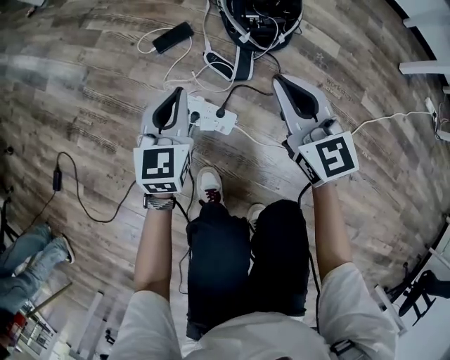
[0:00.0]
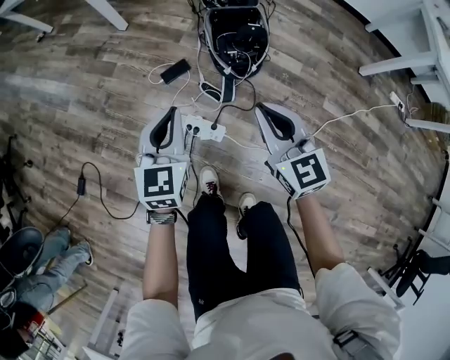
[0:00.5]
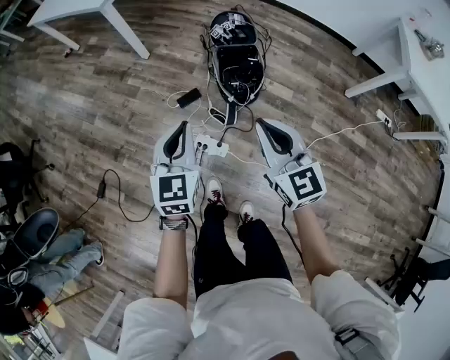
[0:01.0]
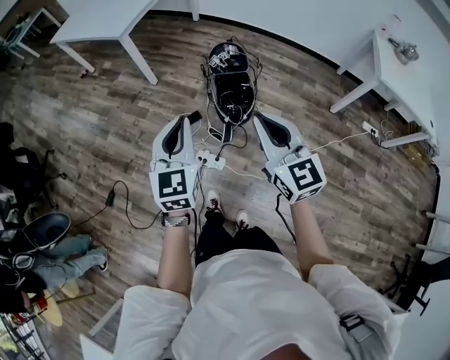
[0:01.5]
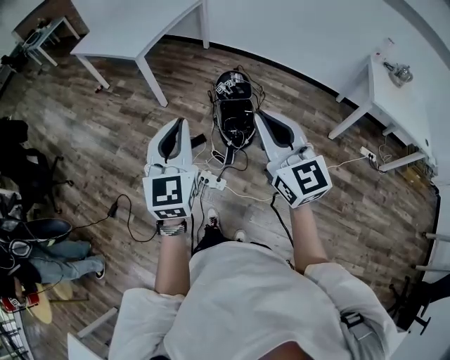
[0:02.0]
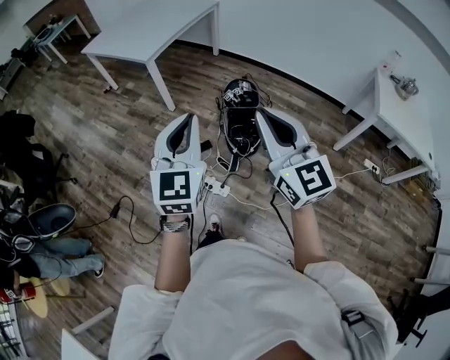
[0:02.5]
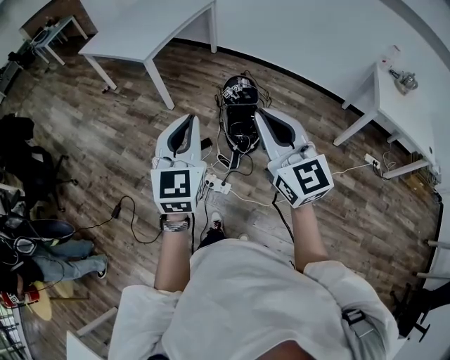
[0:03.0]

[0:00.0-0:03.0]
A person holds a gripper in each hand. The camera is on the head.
0:00.0 to 0:01.5: The two grippers go about 70 cm upward.
0:01.5 to 0:03.0: The two grippers go some 15 cm upward.

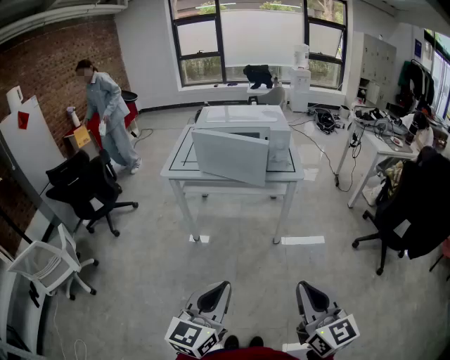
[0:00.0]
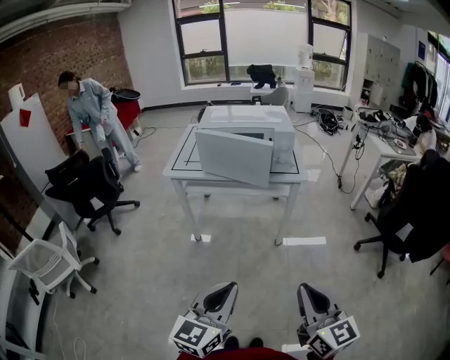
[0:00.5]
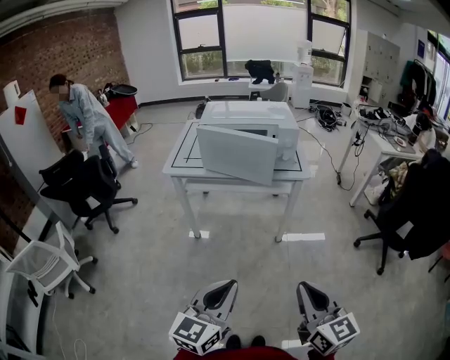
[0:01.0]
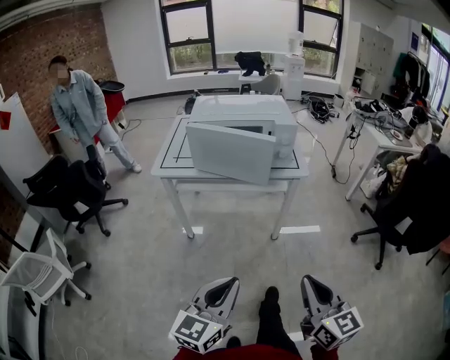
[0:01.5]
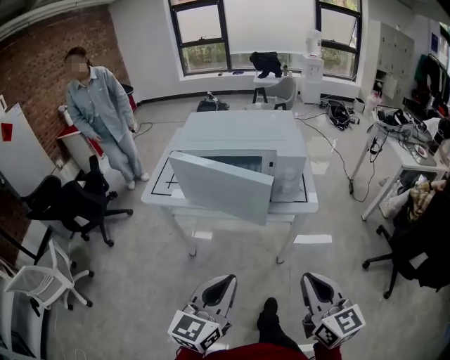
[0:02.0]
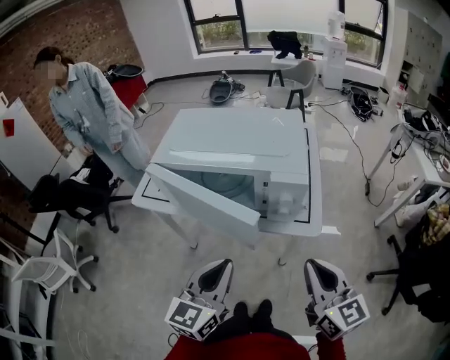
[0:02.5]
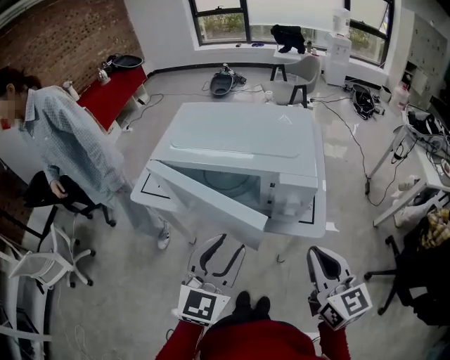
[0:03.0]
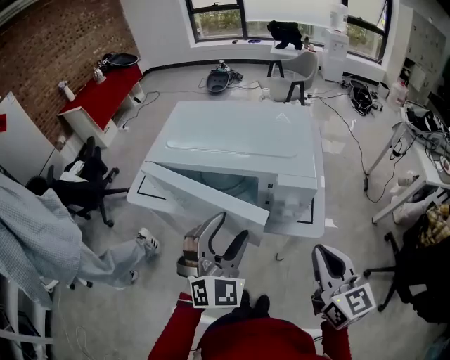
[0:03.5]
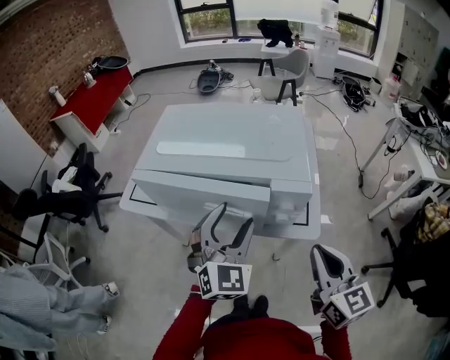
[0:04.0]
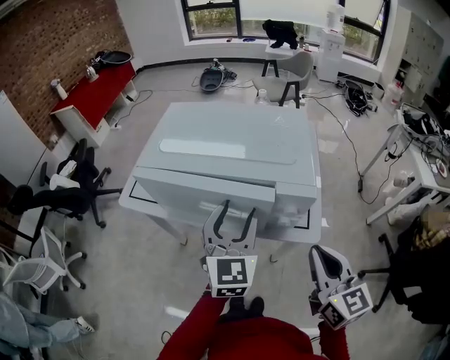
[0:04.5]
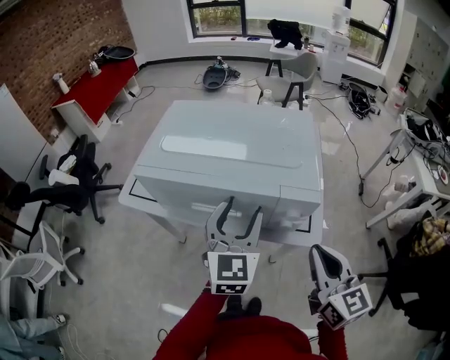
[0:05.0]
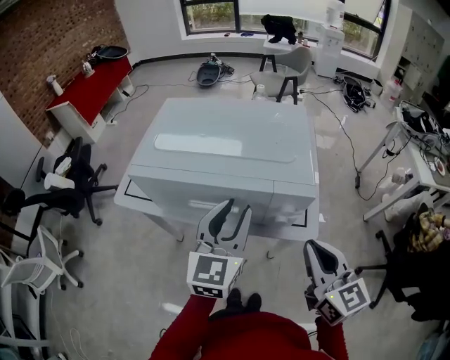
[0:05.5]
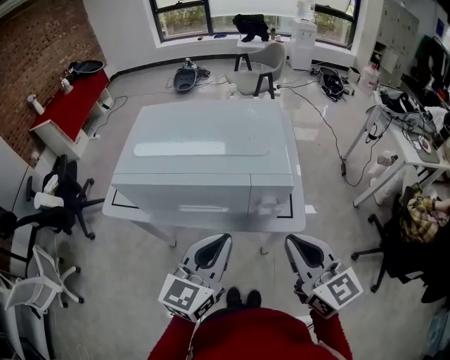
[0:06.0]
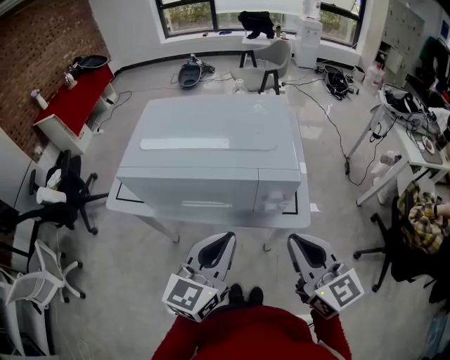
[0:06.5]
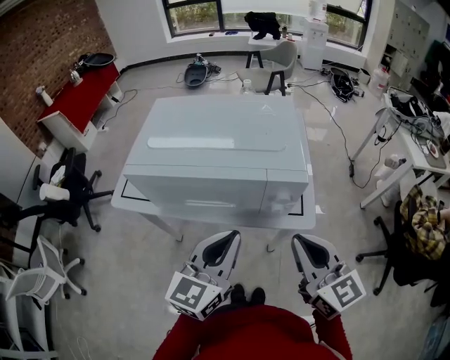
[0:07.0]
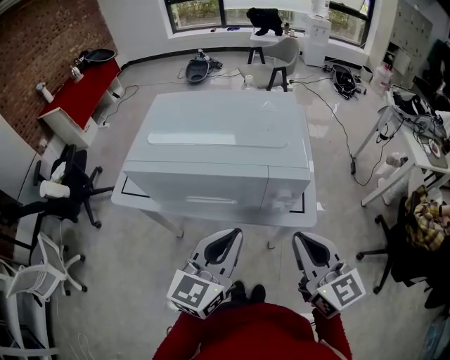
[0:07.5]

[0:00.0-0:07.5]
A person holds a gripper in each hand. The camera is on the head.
0:00.0 to 0:02.0: Both grippers travel together forward, about 25 cm.
0:02.0 to 0:04.0: Both grippers travel together forward, about 25 cm. The left gripper swivels some 40 degrees, and opens.
0:04.0 to 0:05.5: The left gripper swivels about 30 degrees, and closes.
0:05.5 to 0:07.5: The left gripper moves backward, roughly 10 cm, and closes its fingers.

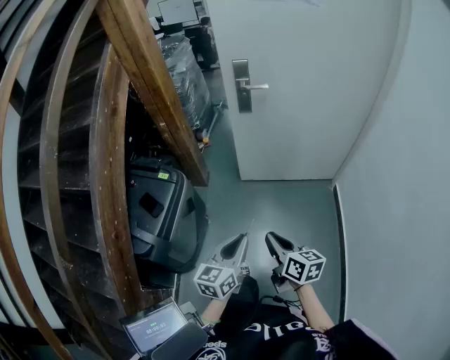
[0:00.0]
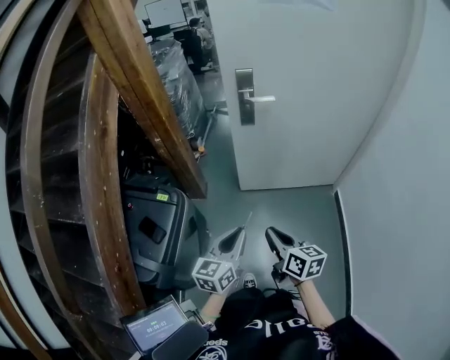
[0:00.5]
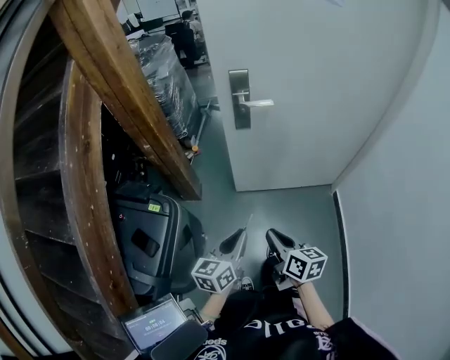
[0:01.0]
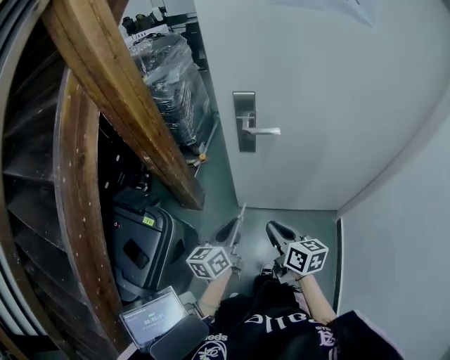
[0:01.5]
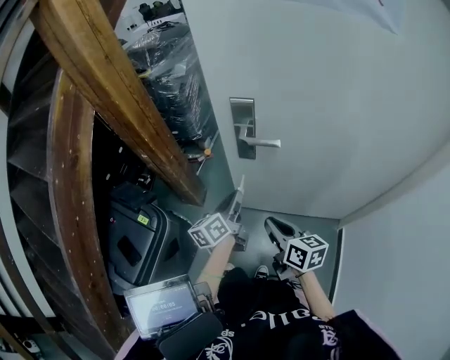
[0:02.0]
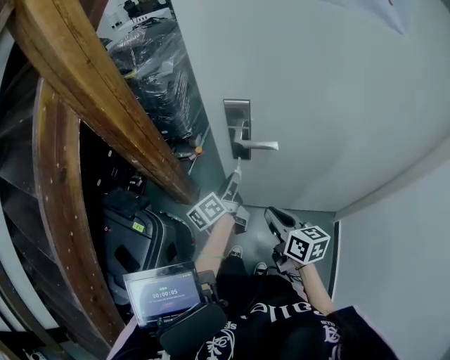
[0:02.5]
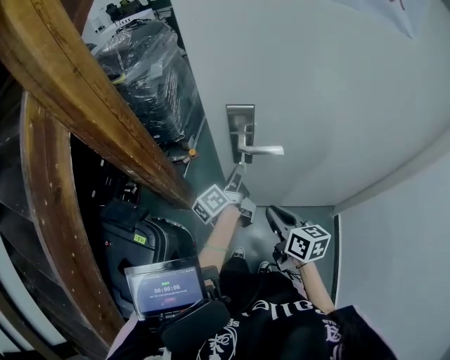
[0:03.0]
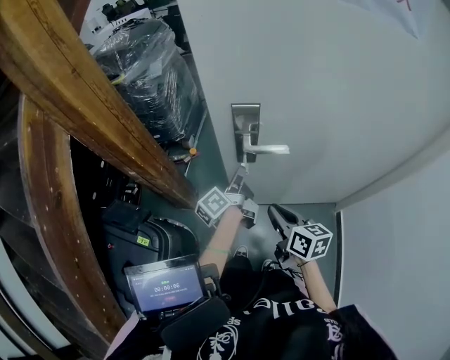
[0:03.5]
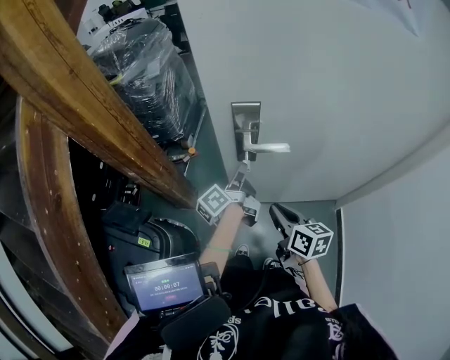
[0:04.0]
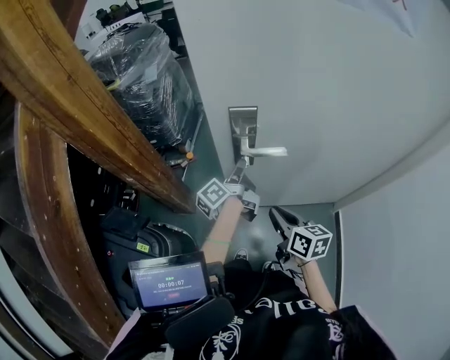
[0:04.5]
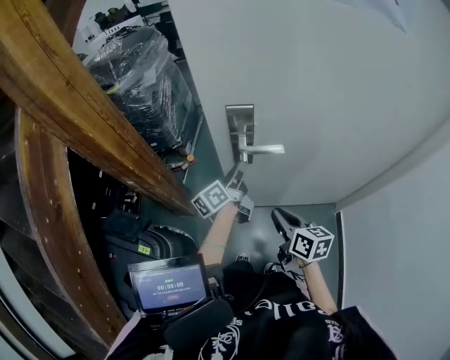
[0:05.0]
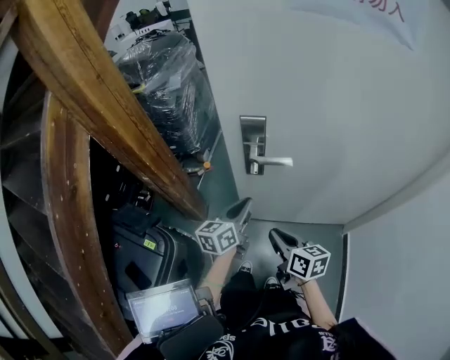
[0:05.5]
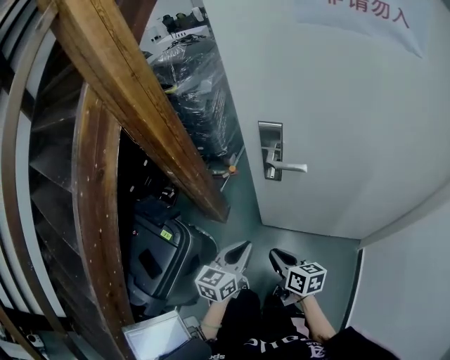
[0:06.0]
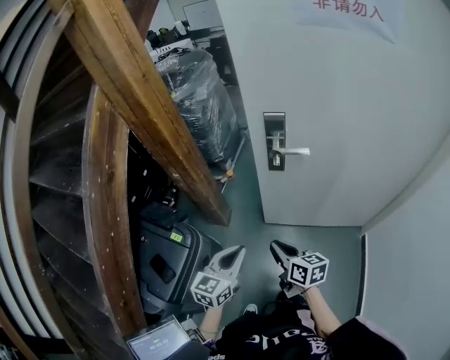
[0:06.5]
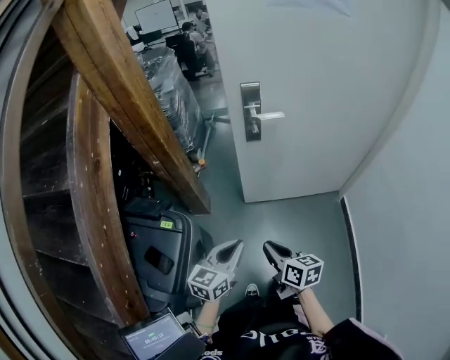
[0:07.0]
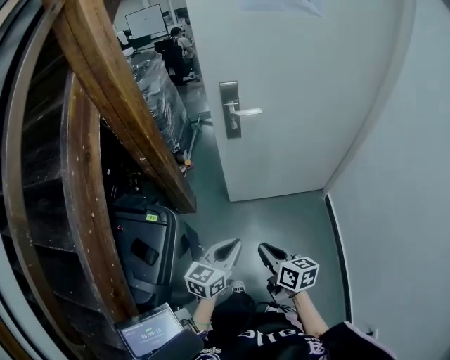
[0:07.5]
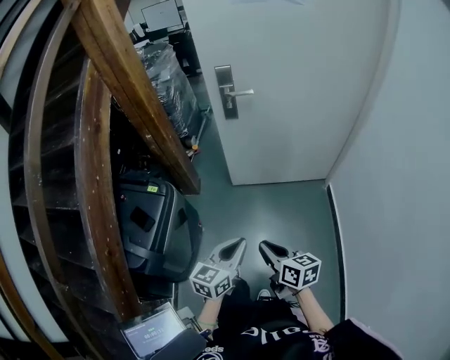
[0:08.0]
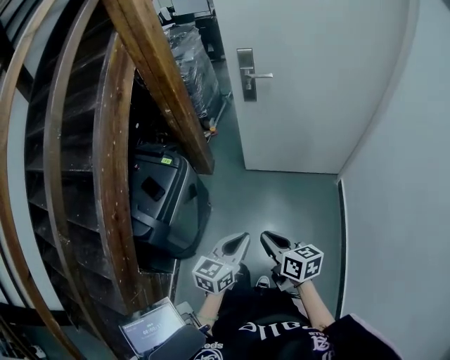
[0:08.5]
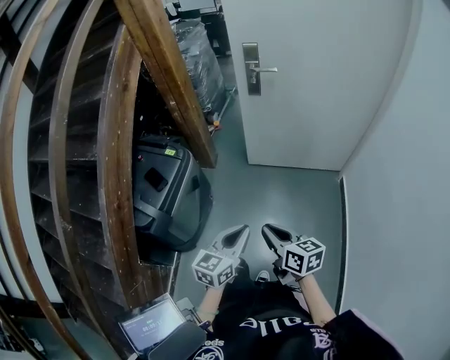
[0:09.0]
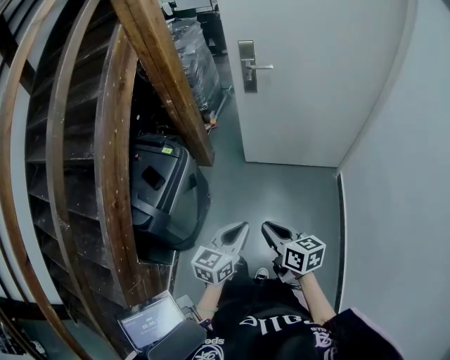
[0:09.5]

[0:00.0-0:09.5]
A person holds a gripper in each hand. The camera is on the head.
0:00.0 to 0:02.0: The two grippers travel together, forward, some 50 cm. The left gripper rotates about 30 degrees.
0:02.0 to 0:04.0: The left gripper moves forward, about 15 cm, and rotates approximately 30 degrees. Meanwhile the right gripper heads forward, covering about 10 cm.
0:04.0 to 0:05.5: The left gripper moves backward, about 10 cm, and twists about 50 degrees clockwise, seen from behind.
0:05.5 to 0:07.5: The two grippers go roughly 35 cm backward. The left gripper swivels approximately 20 degrees.
0:07.5 to 0:09.5: The two grippers go approximately 20 cm backward.

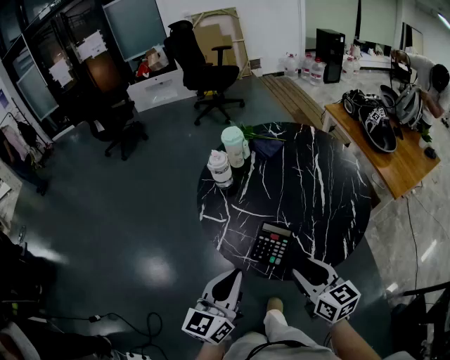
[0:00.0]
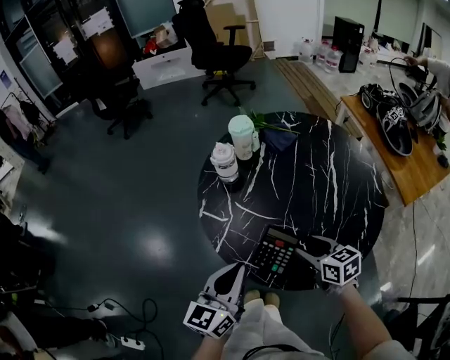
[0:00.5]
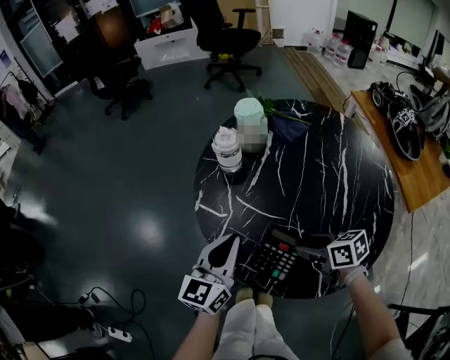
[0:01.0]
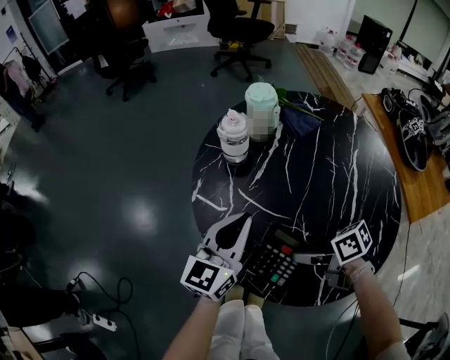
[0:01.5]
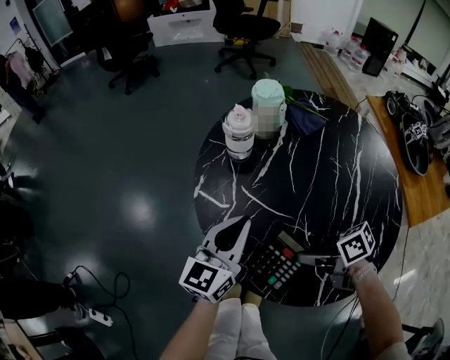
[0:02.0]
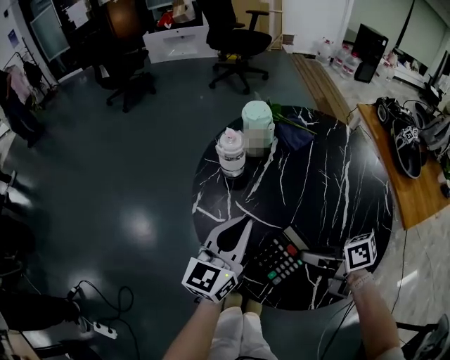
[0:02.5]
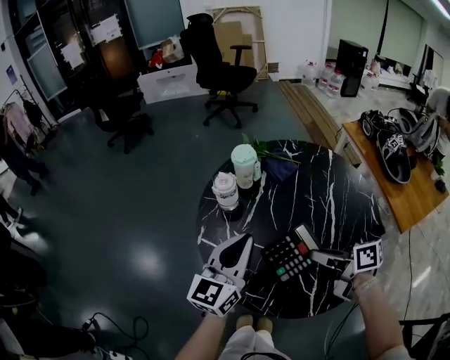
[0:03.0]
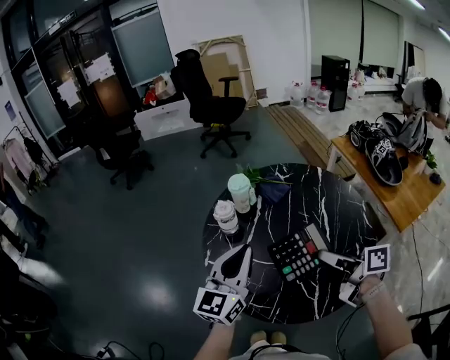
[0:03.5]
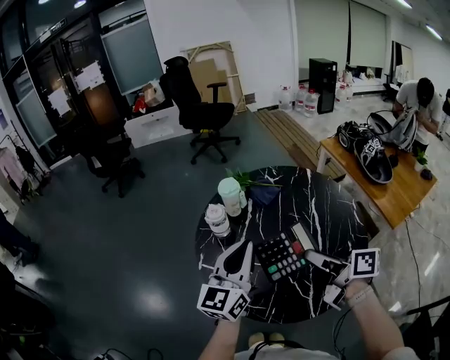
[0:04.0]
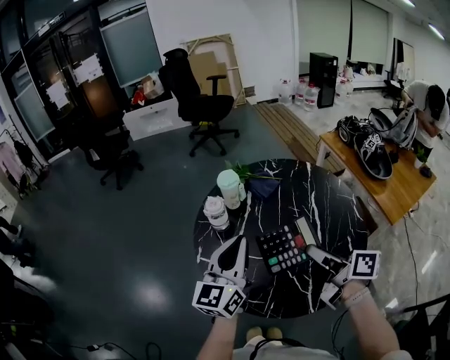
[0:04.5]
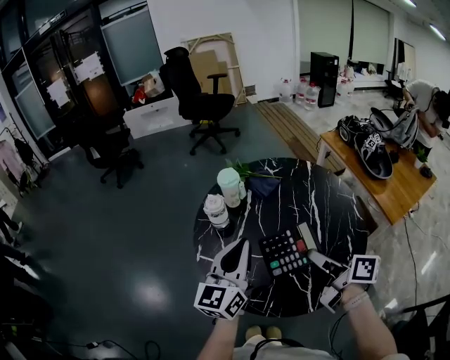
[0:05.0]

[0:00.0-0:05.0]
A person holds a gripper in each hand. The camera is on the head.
0:00.0 to 0:02.5: The left gripper changes place by roughly 20 cm. The right gripper changes place by some 20 cm, and swivels roughly 50 degrees.
0:02.5 to 0:05.0: The two grippers go about 15 cm upward. The right gripper swivels some 40 degrees.

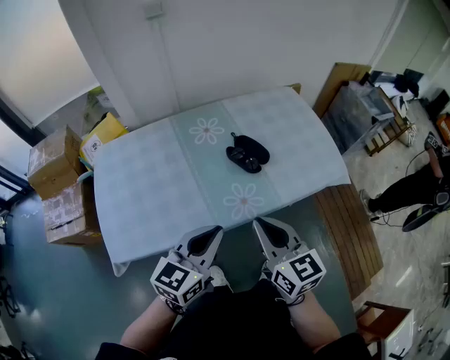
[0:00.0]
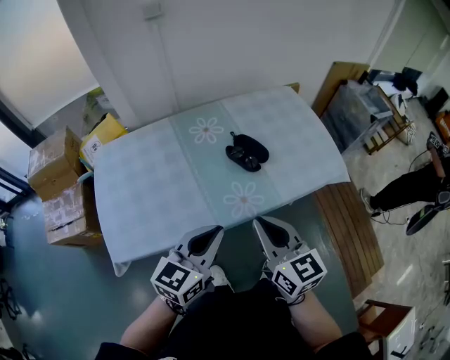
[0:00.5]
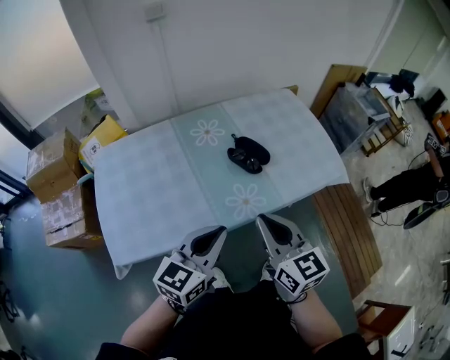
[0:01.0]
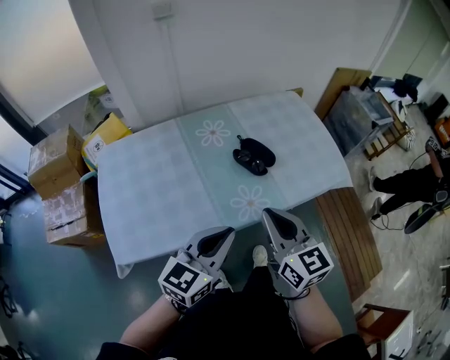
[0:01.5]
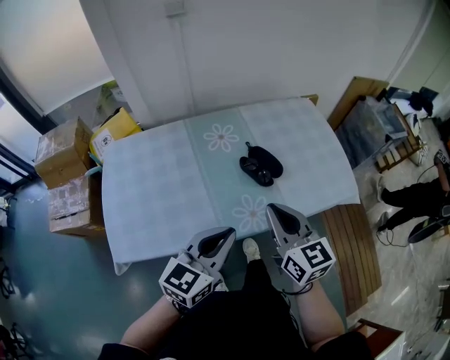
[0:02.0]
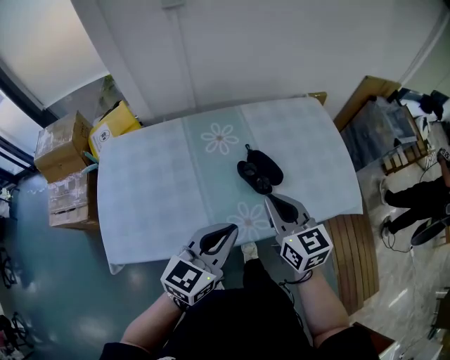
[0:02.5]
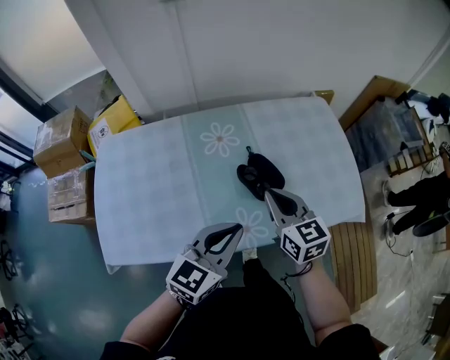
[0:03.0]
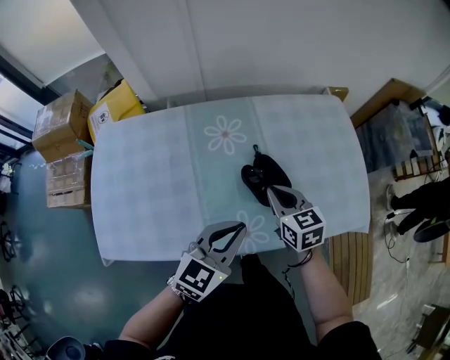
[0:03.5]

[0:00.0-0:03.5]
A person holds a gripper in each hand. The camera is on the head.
0:00.0 to 0:02.0: The right gripper goes approximately 10 cm forward.
0:02.0 to 0:03.5: The right gripper shifts about 25 cm forward and downward, and turns by roughly 20 degrees. Meanwhile the left gripper moves forward, downward and to the right, approximately 15 cm.
